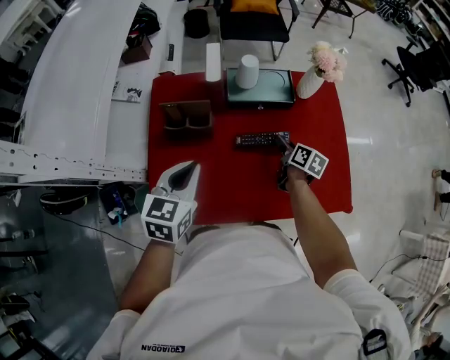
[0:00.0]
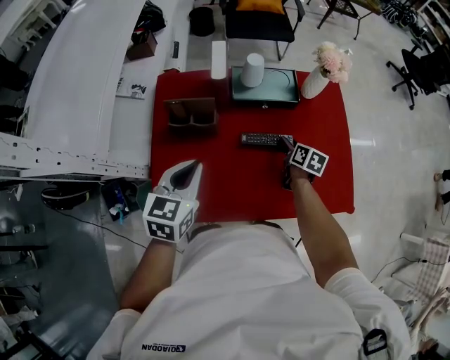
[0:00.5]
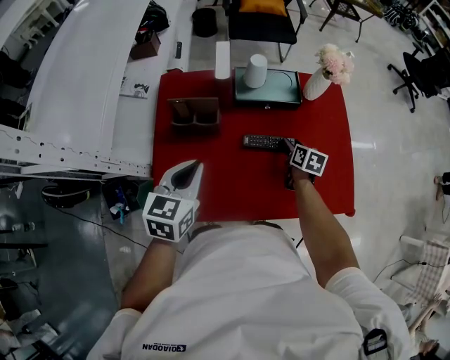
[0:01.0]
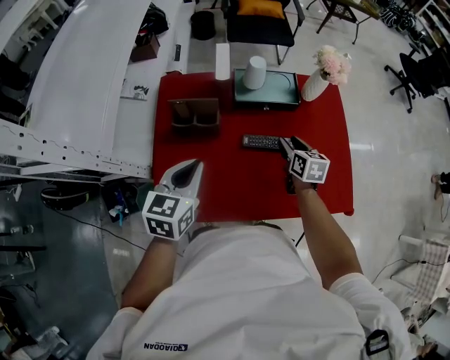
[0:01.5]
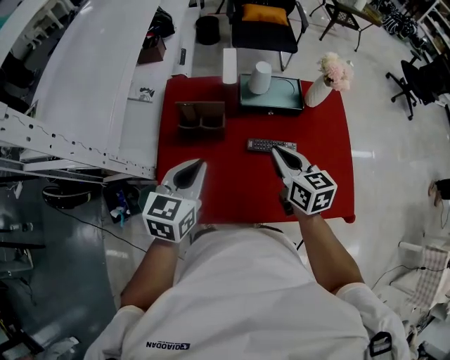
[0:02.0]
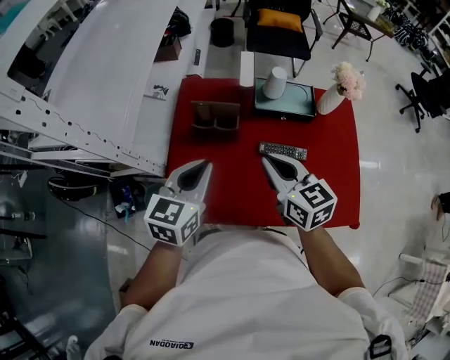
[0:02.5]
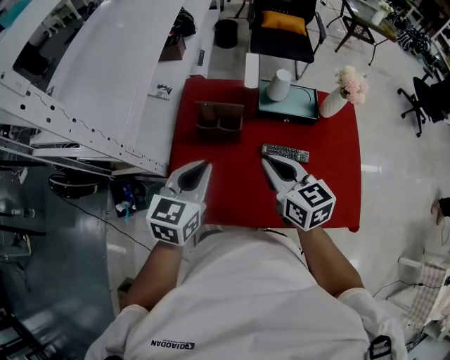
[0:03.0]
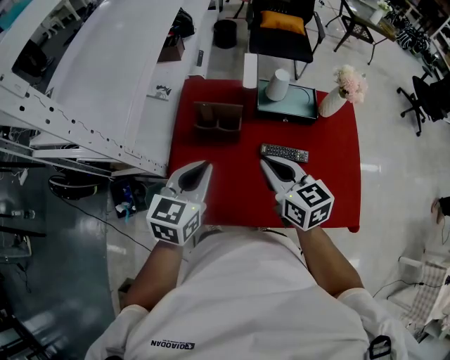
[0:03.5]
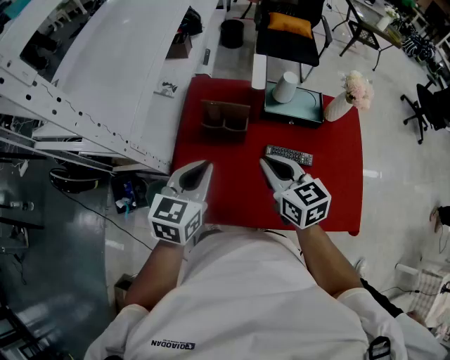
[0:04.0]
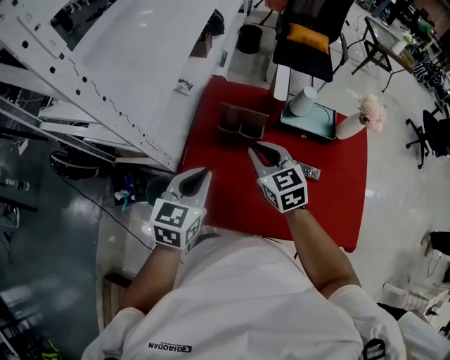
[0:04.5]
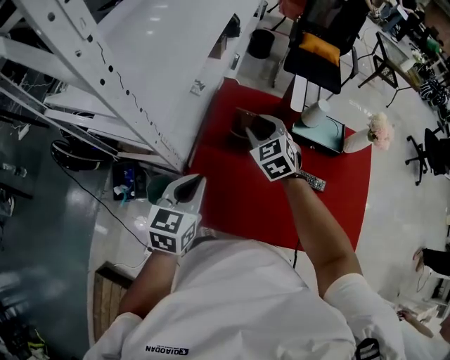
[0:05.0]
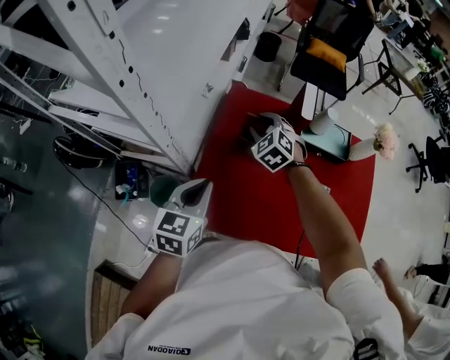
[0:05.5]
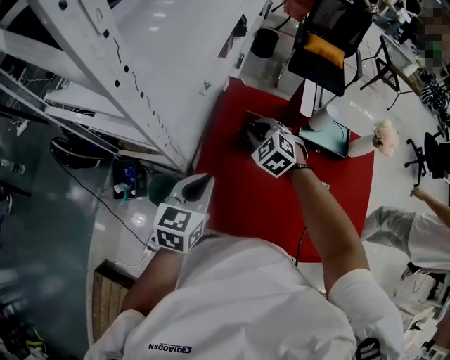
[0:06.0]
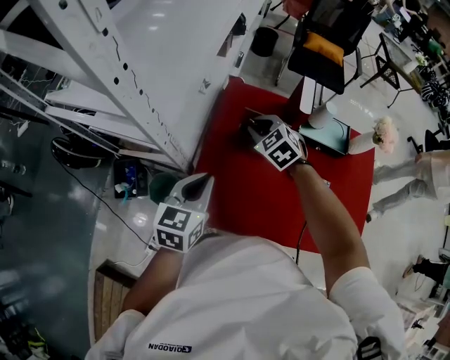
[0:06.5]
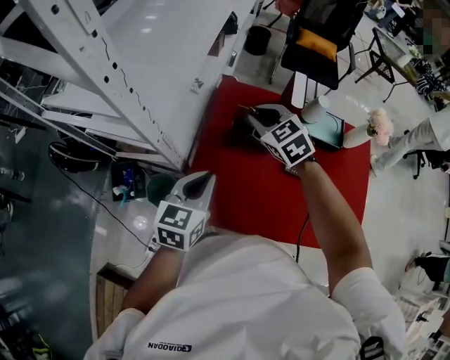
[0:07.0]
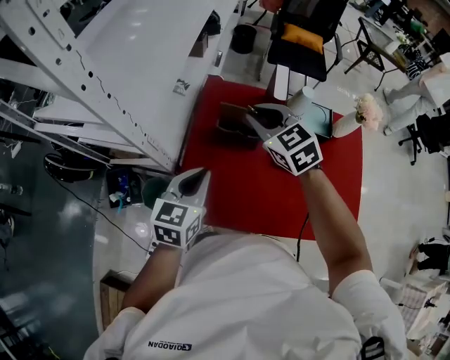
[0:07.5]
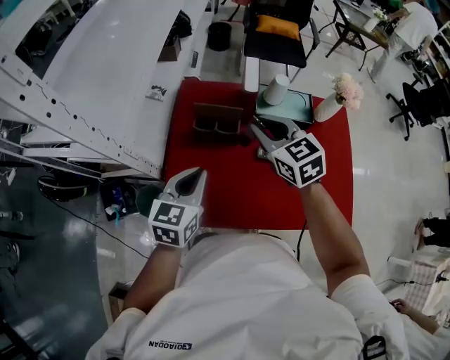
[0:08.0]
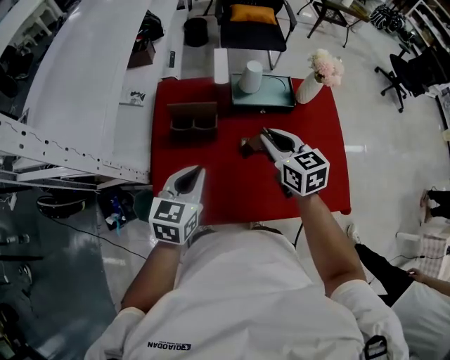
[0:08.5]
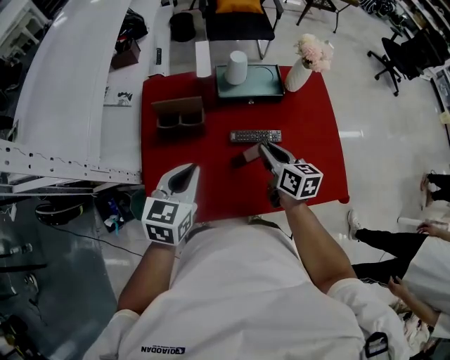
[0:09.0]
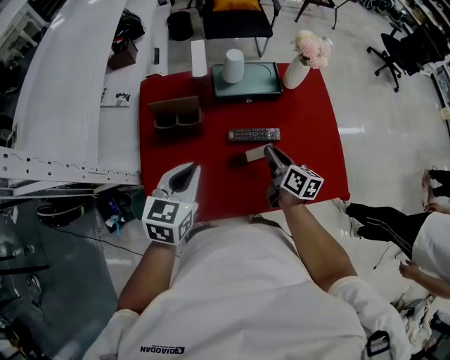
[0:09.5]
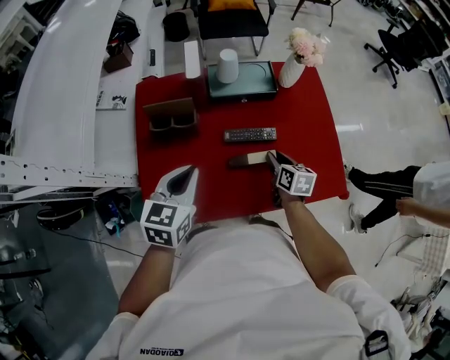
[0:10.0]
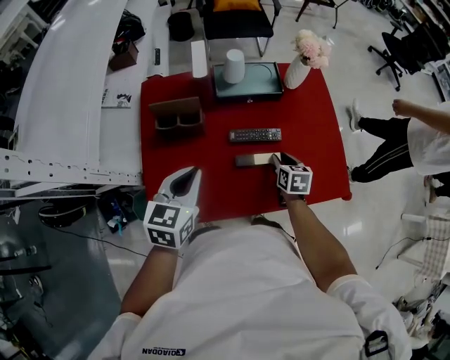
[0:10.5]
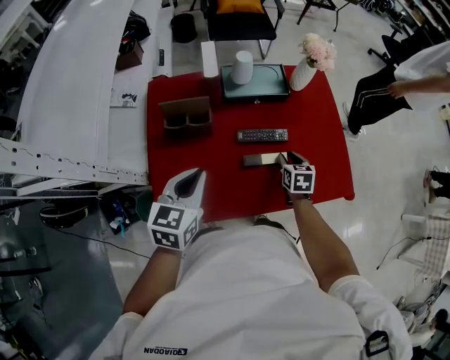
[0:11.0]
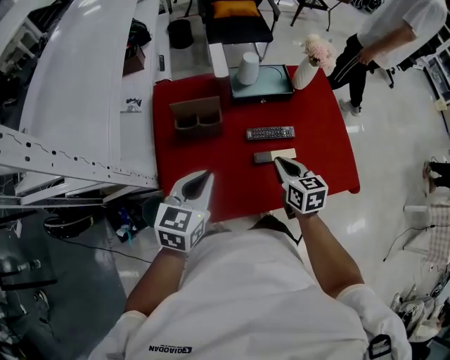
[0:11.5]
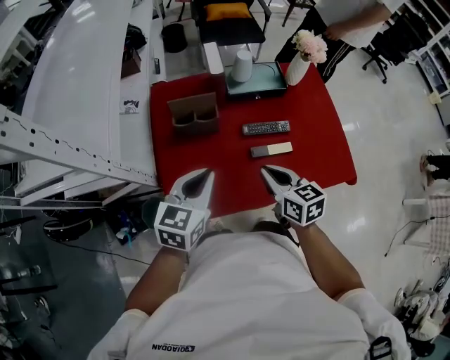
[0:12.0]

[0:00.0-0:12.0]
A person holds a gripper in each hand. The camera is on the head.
0:00.0 to 0:02.0: The right gripper goes approximately 20 cm upward, to the left and backward, rotates some 40 degrees, and closes.
0:02.0 to 0:04.0: The right gripper is displaced to the left by approximately 10 cm.
0:04.0 to 0:06.0: The right gripper is displaced forward, to the left and downward by some 25 cm, twists approximately 50 degrees counterclockwise, seen from behind, and opens its fingers. The left gripper is displaced to the left by roughly 10 cm.
0:06.0 to 0:08.0: The left gripper shifts about 10 cm to the right. Meanwhile the right gripper shifts roughly 20 cm to the right, upward and backward, and swivels some 40 degrees.
0:08.0 to 0:10.0: The left gripper shifts about 10 cm to the right. Meanwhile the right gripper shifts roughly 30 cm downward and to the right, and rolls clockwise, seen from behind, by roughly 50 degrees.
0:10.0 to 0:12.0: The right gripper goes roughly 25 cm to the left, upward and backward, changes its angle by approximately 20 degrees, and closes its fingers; the left gripper heads backward, covering some 5 cm.

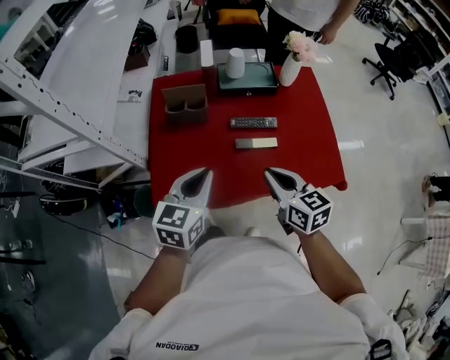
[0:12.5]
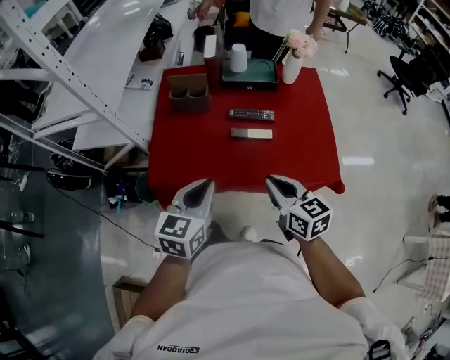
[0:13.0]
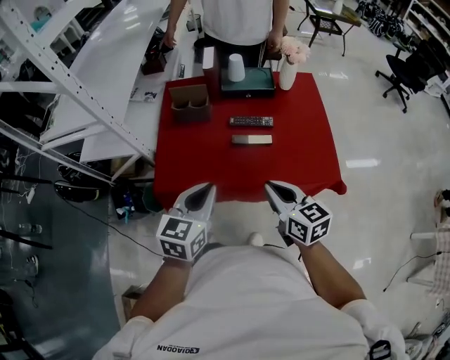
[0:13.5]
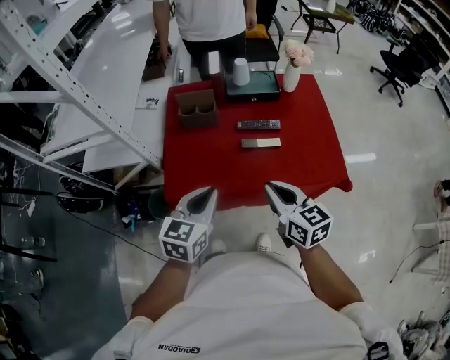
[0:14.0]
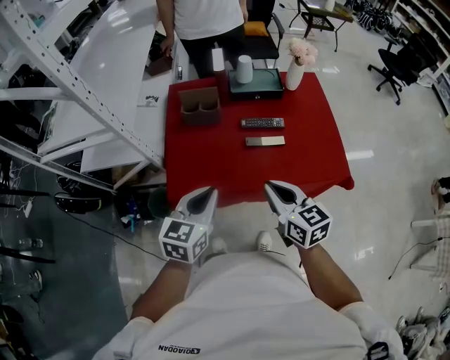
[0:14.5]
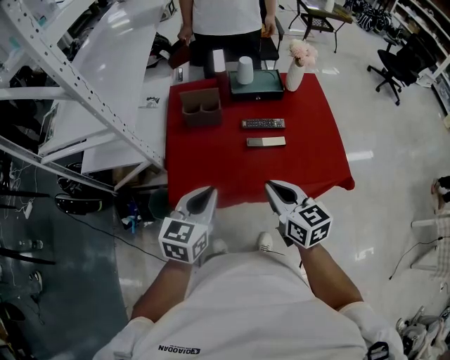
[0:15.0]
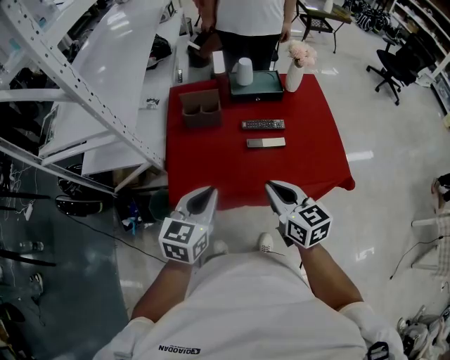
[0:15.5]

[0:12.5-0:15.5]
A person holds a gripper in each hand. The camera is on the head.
0:12.5 to 0:14.0: The two grippers go approximately 10 cm backward.
0:14.0 to 0:15.5: The grippers move only a little.

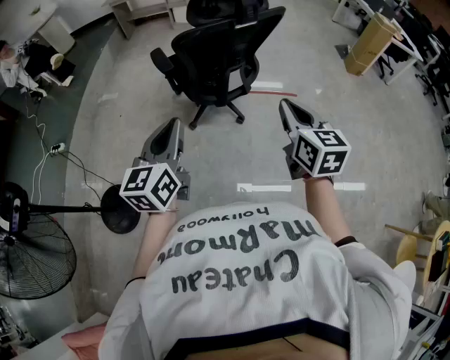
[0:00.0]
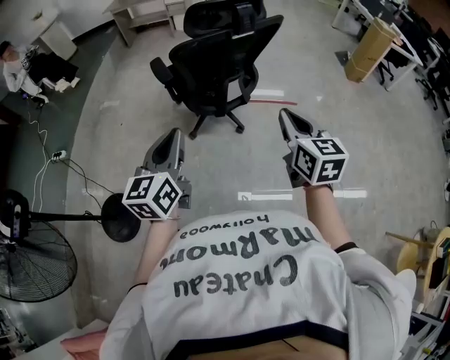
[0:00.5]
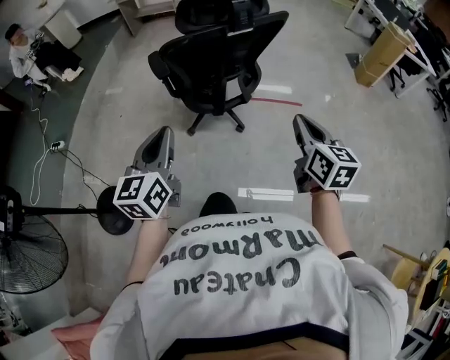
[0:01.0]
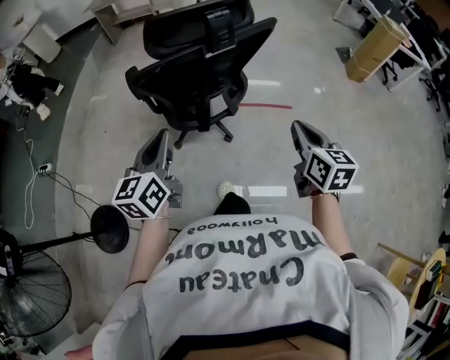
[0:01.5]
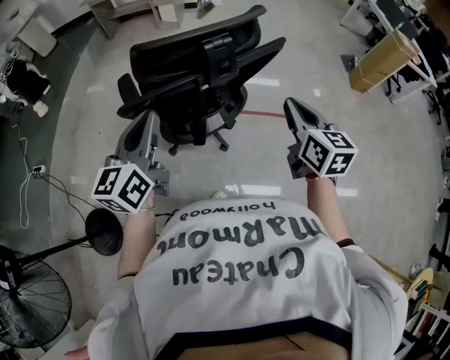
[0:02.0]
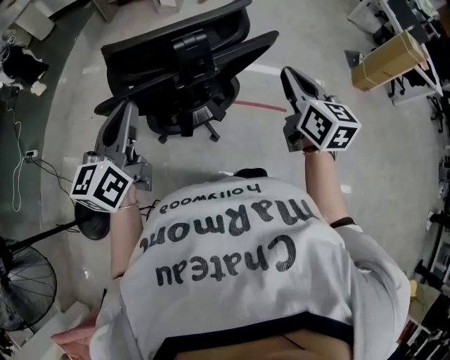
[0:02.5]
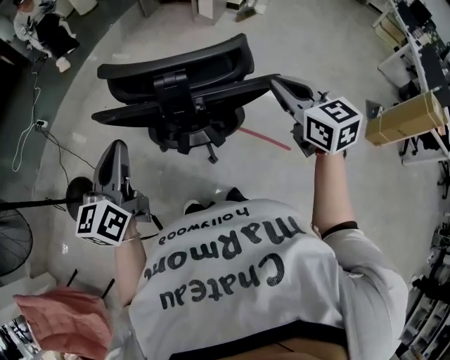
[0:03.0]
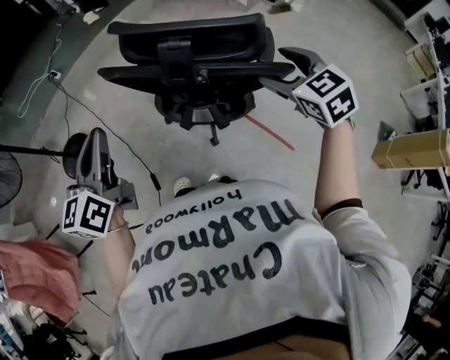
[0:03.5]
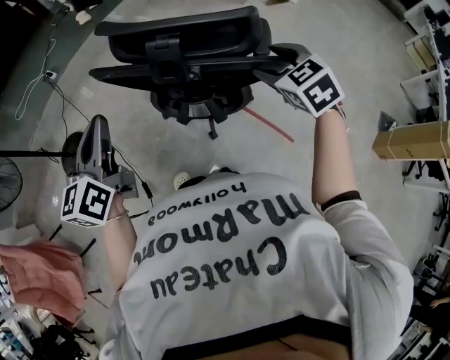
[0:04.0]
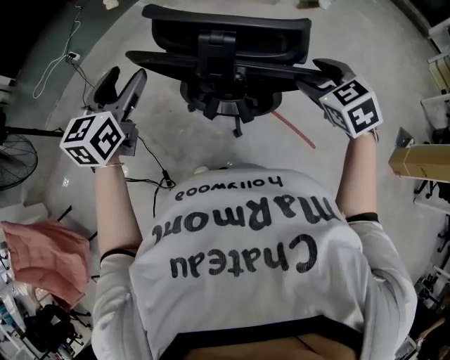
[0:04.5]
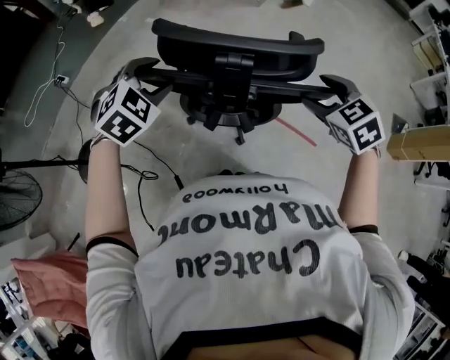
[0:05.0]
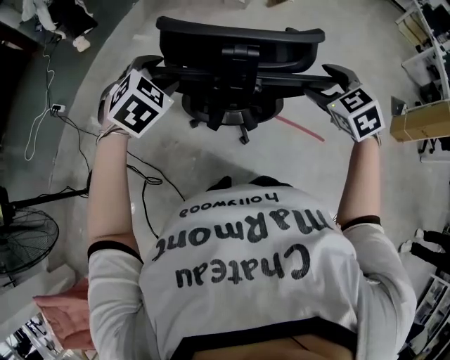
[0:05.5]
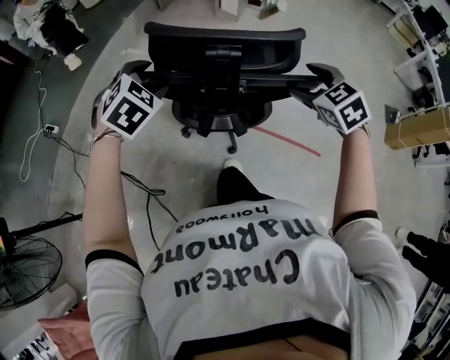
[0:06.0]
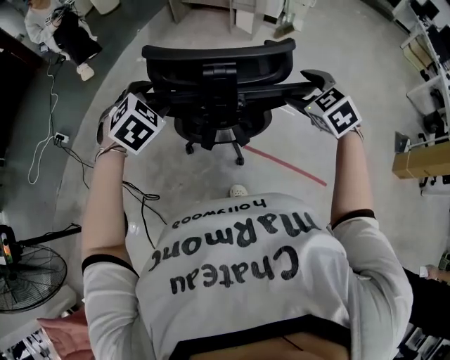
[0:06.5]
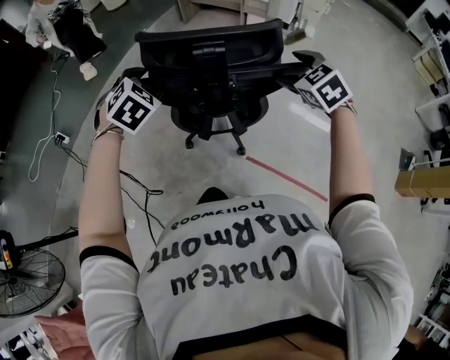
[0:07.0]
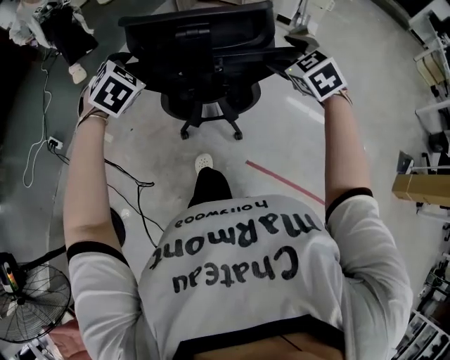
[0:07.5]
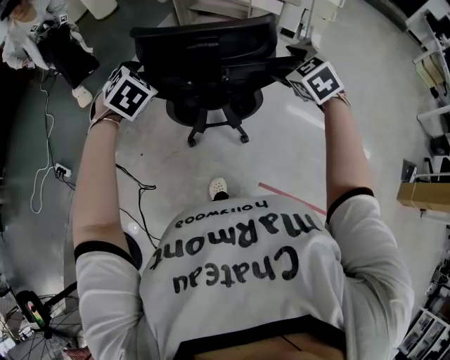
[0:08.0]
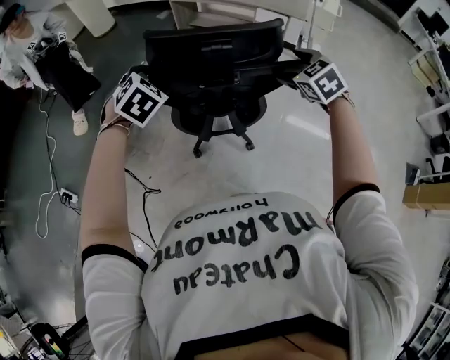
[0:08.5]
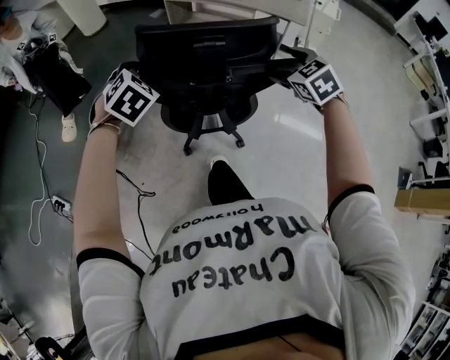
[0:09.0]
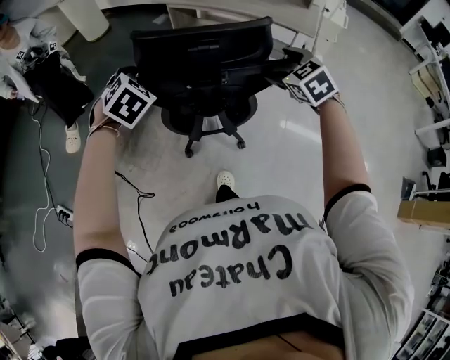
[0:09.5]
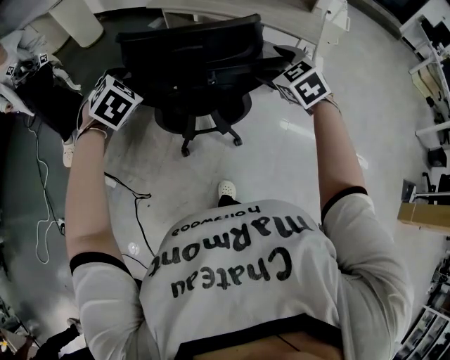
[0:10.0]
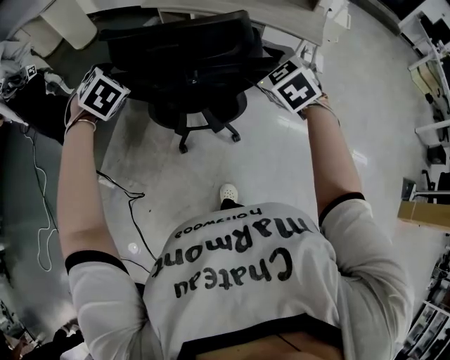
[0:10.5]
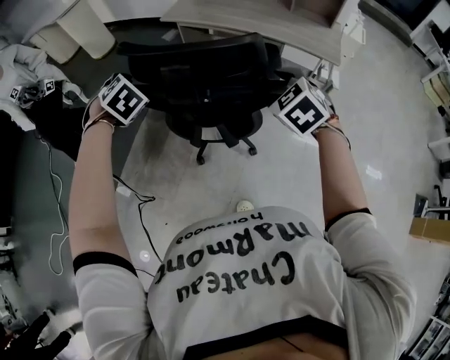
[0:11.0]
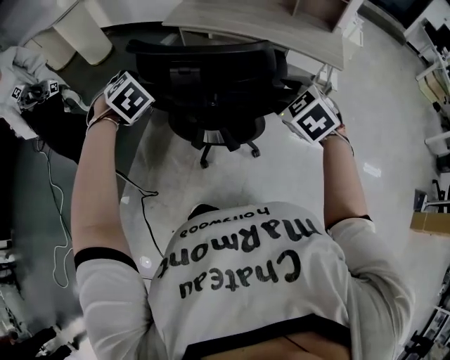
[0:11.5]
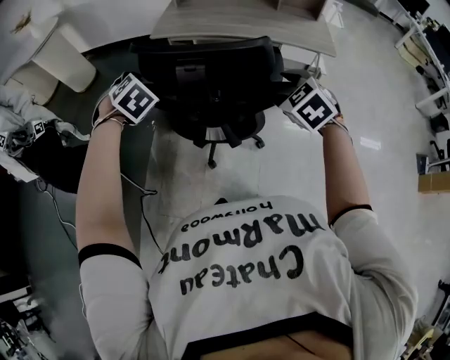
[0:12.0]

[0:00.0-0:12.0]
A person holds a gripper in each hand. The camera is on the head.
0:00.0 to 0:02.0: Both grippers travel together forward, some 30 cm.
0:02.0 to 0:04.0: The right gripper ends up roughly 20 cm from where it was, turns by roughly 70 degrees, and opens up. The left gripper shifts by approximately 5 cm, and turns by about 40 degrees.
0:04.0 to 0:06.0: The left gripper heads forward and downward, covering some 20 cm, rotates around the line of its fingers by approximately 70 degrees, clockwise from behind, and opens up.
0:06.0 to 0:10.0: The grippers move only a little.
0:10.0 to 0:12.0: The left gripper heads to the left and forward, covering approximately 10 cm; the right gripper moves to the left and backward, about 15 cm.
